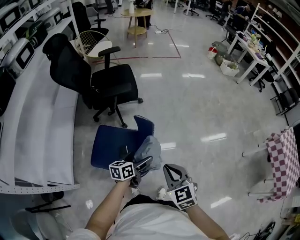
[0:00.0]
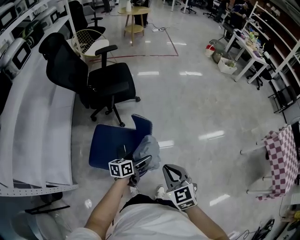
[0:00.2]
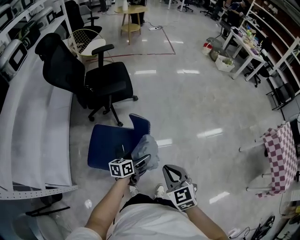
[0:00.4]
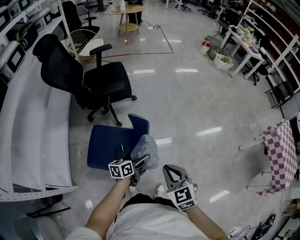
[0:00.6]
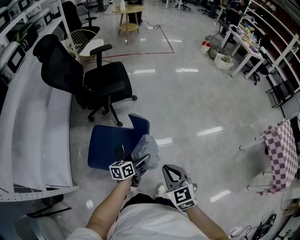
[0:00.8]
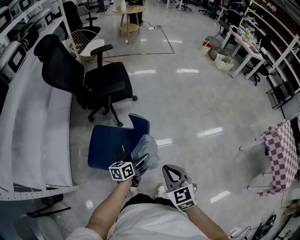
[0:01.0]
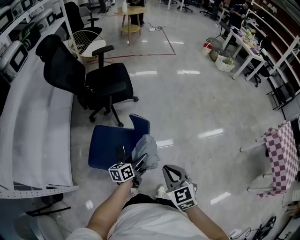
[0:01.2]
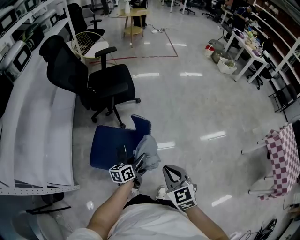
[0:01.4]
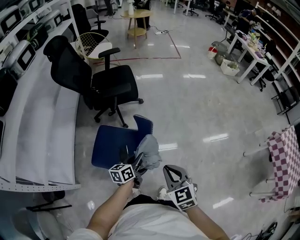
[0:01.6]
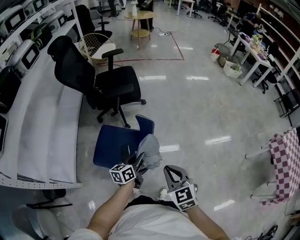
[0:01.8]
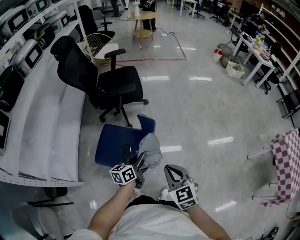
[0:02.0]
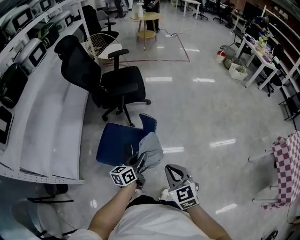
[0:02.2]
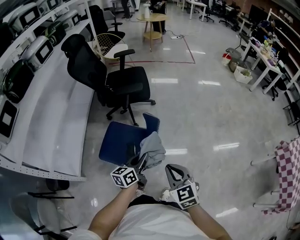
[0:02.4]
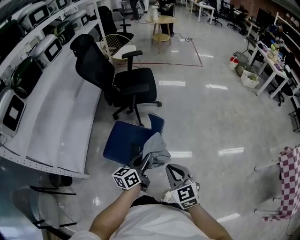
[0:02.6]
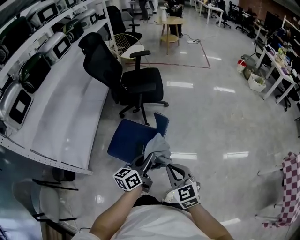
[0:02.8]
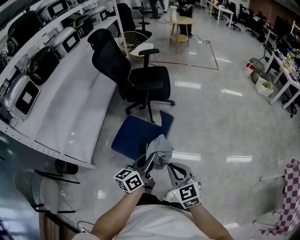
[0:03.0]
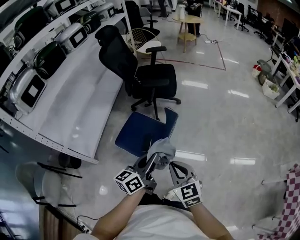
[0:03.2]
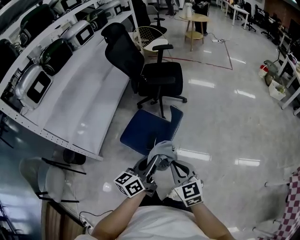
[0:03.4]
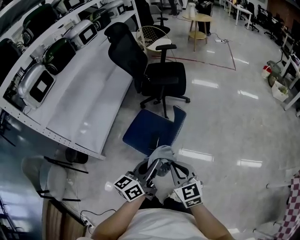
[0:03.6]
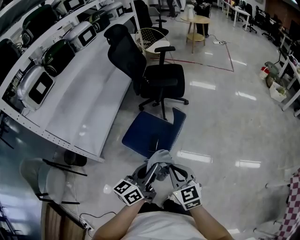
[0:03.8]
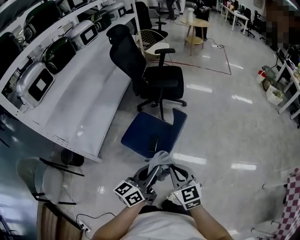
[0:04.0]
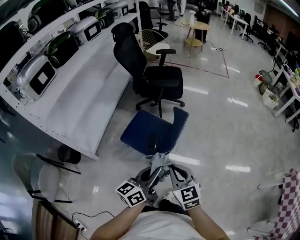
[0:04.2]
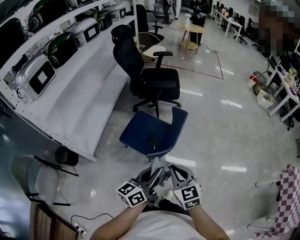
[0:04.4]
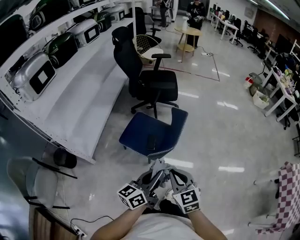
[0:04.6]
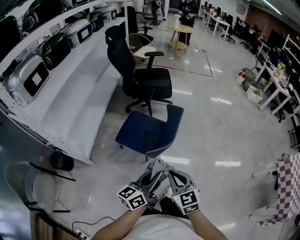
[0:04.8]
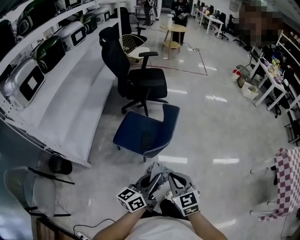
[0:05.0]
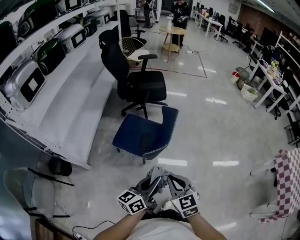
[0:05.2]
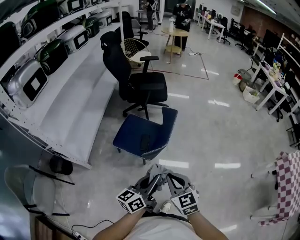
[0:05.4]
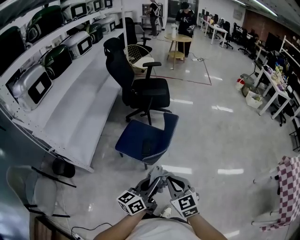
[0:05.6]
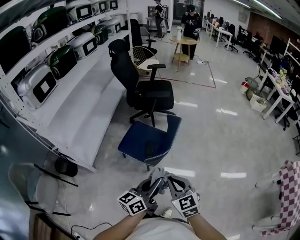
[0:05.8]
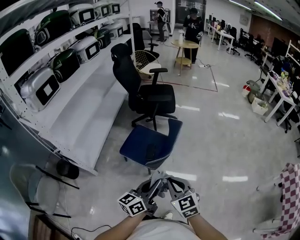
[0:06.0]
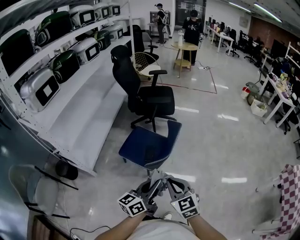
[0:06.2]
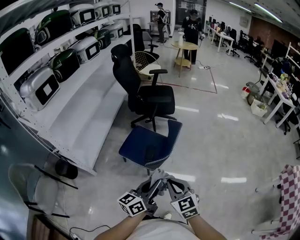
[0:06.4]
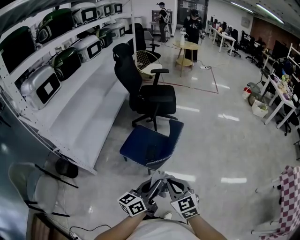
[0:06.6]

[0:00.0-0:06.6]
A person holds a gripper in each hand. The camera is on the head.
0.0 to 1.6 s: The left gripper closes.
1.6 to 3.2 s: The left gripper is displaced upward and backward by some 20 cm, and swivels approximately 20 degrees, while the right gripper moves backward, approximately 5 cm, and rotates about 20 degrees.
3.2 to 5.0 s: Both grippers travel together backward and to the left, some 20 cm.
5.0 to 6.6 s: The grippers move only a little.

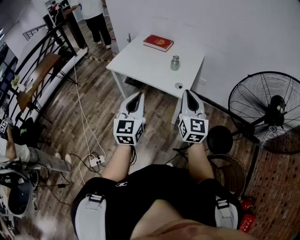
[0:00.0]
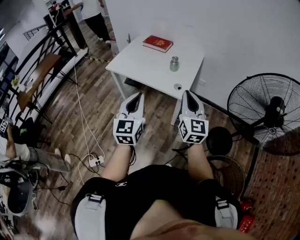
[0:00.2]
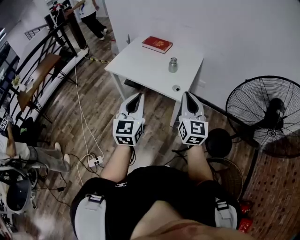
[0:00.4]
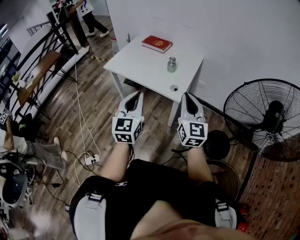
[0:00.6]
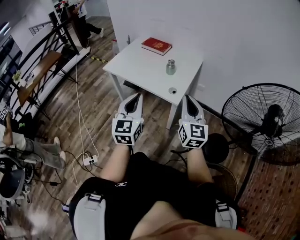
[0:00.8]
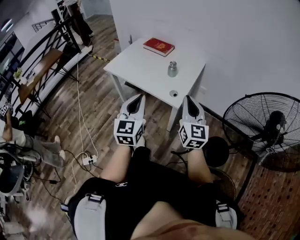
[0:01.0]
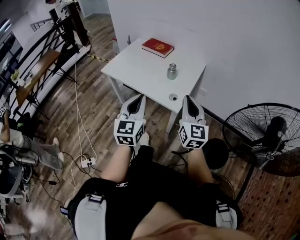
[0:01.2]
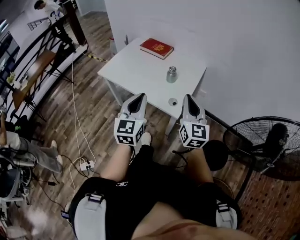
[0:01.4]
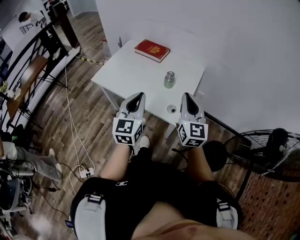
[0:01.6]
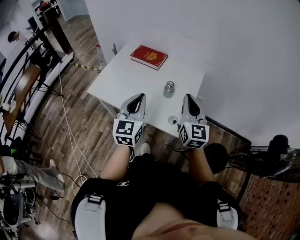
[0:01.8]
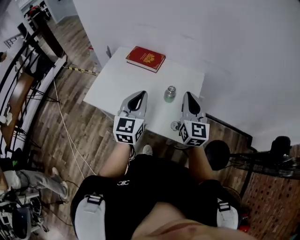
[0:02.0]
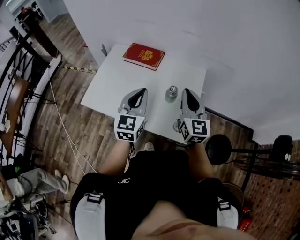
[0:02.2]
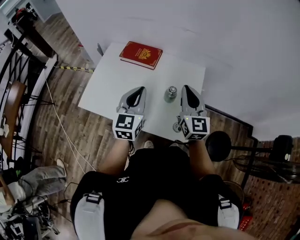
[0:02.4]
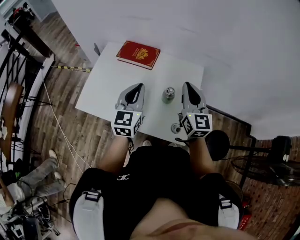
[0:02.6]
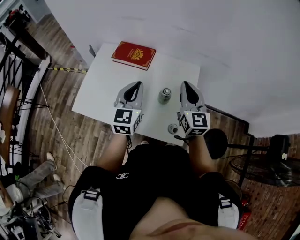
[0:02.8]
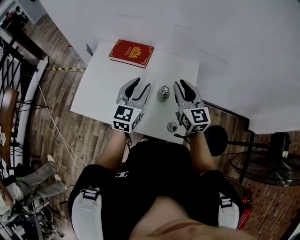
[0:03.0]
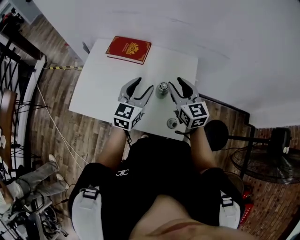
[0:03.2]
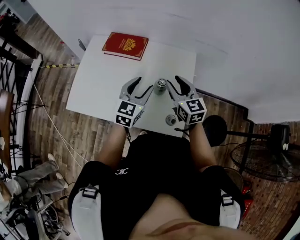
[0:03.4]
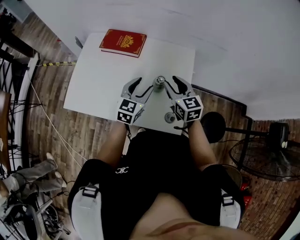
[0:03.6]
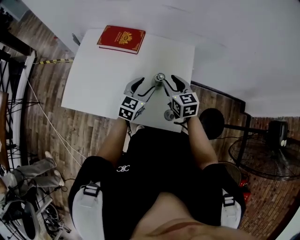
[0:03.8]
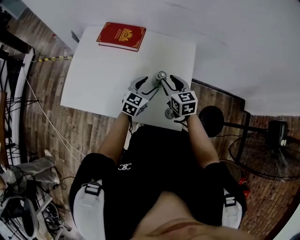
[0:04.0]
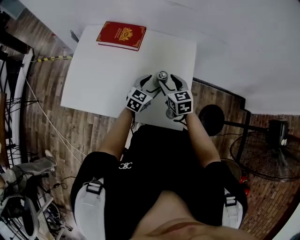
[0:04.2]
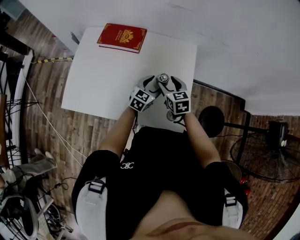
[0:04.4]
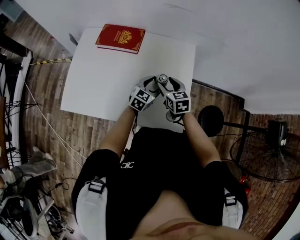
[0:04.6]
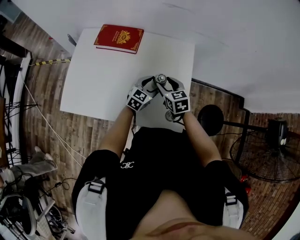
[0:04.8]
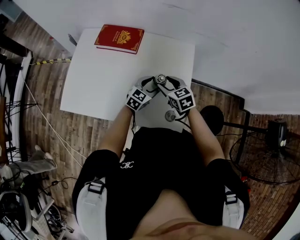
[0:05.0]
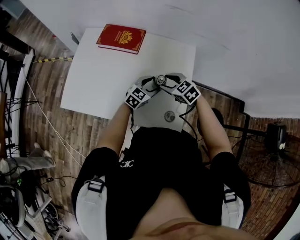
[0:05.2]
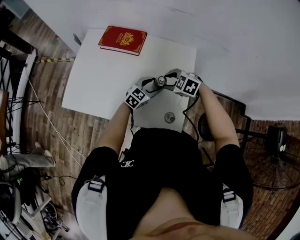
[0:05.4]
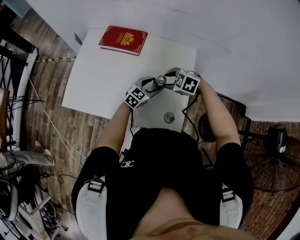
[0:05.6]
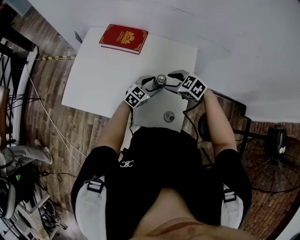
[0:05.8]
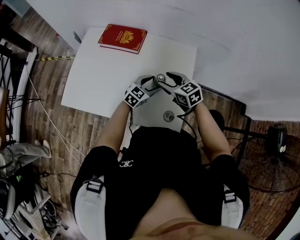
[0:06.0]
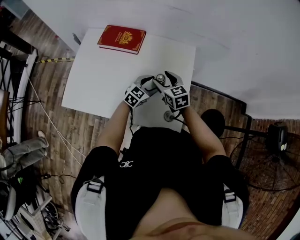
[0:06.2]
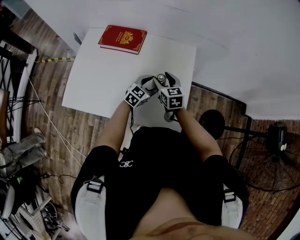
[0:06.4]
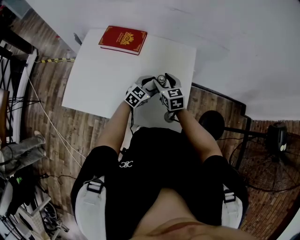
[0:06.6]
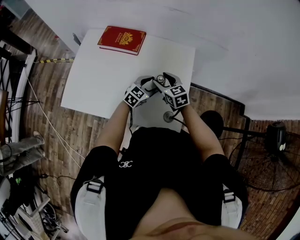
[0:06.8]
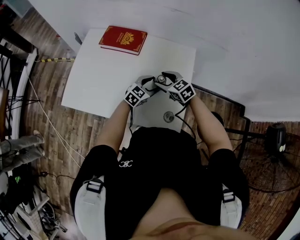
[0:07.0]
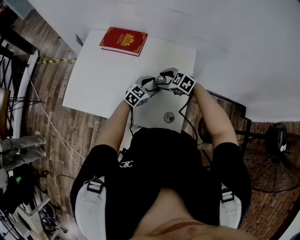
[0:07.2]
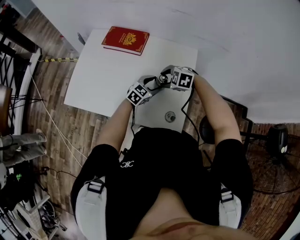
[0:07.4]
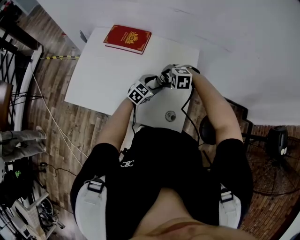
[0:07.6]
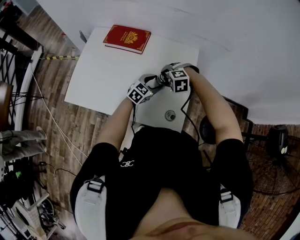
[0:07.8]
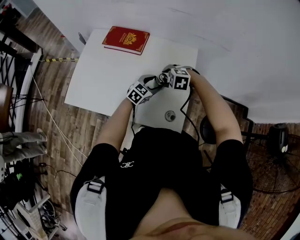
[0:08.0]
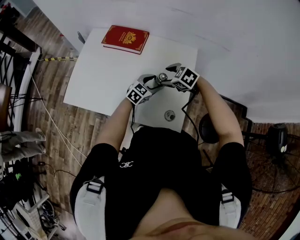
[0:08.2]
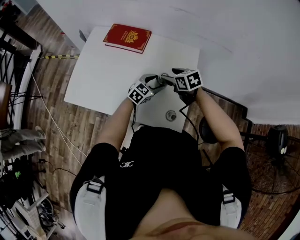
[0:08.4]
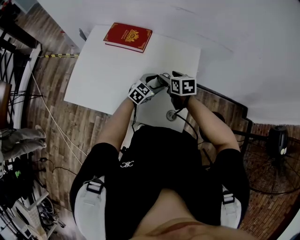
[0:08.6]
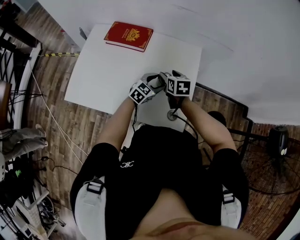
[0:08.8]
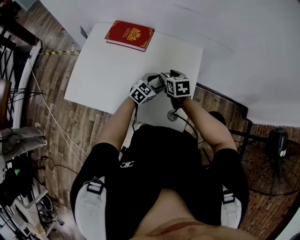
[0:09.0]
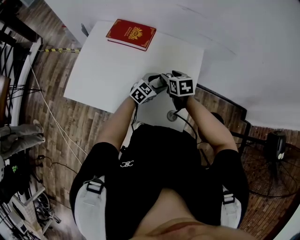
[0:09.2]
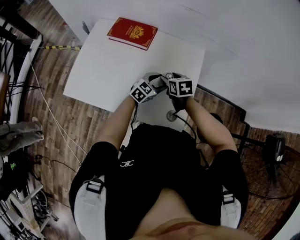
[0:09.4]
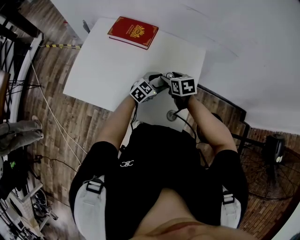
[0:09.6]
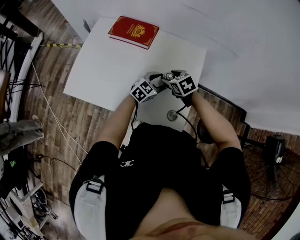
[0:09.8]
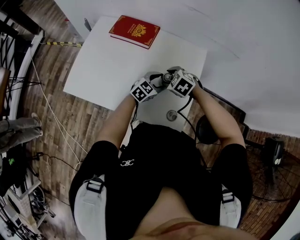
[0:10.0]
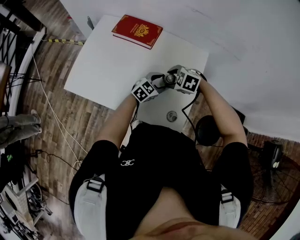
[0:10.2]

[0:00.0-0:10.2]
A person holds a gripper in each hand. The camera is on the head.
0.0 to 1.4 s: The right gripper shifts about 15 cm forward. The left gripper shifts about 15 cm forward and to the right.
1.4 to 3.0 s: Both grippers travel together forward, some 35 cm. The left gripper rotates roughly 30 degrees, and opens.
3.0 to 4.4 s: The right gripper is displaced downward by approximately 20 cm, tips its fingers downward by about 30 degrees, and opens its fingers. Meanwhile the left gripper goes about 25 cm downward and to the right, rotates approximately 30 degrees, and opens its fingers.
4.4 to 5.8 s: The right gripper turns by approximately 50 degrees.
7.2 to 8.8 s: The right gripper rotates around the line of its fingers by approximately 50 degrees, clockwise from behind.
8.8 to 10.2 s: The right gripper ends up roughly 5 cm from where it was, and rotates around the line of its fingers by some 70 degrees, counterclockwise from behind.

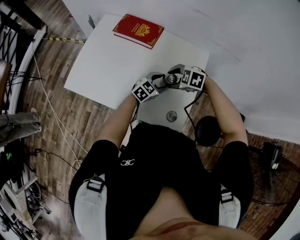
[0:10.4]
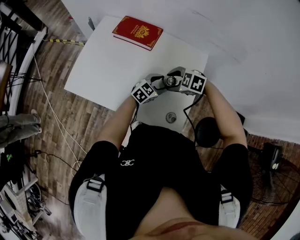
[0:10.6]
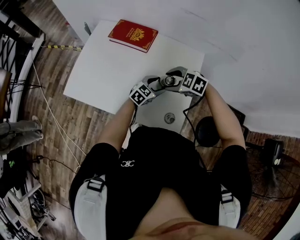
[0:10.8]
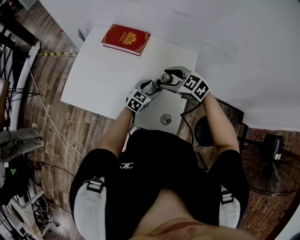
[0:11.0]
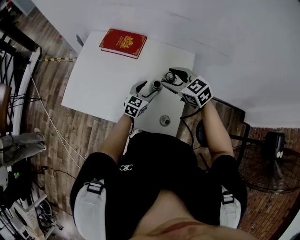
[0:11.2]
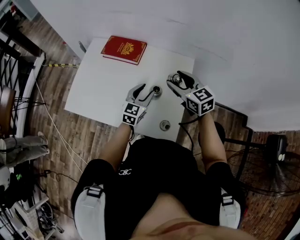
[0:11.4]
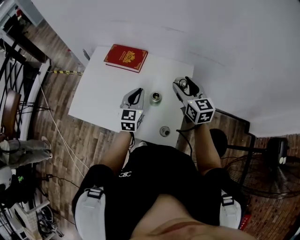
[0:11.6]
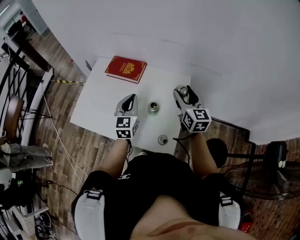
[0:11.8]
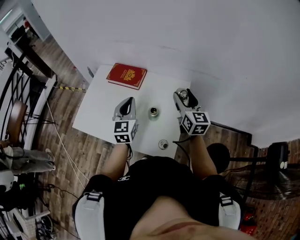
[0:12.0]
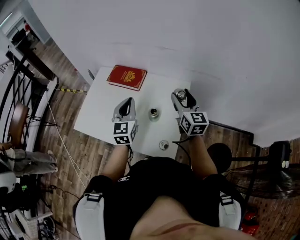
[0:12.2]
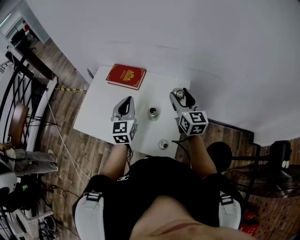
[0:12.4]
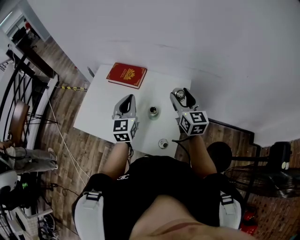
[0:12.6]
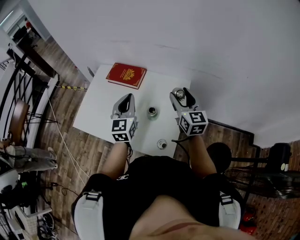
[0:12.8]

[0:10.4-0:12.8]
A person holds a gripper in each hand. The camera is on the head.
10.4 to 11.6 s: Both grippers travel together upward, approximately 15 cm. The right gripper tilts its fingers some 50 degrees upward, while the left gripper swivels some 40 degrees, and closes its fingers.
11.6 to 12.8 s: The left gripper shifts about 10 cm upward.

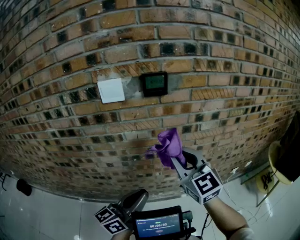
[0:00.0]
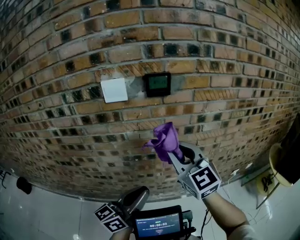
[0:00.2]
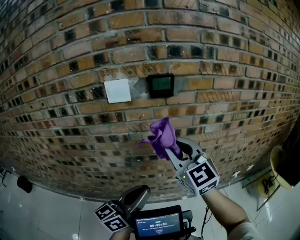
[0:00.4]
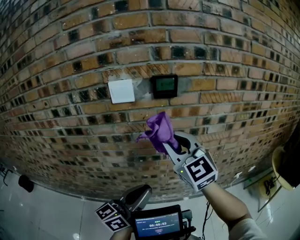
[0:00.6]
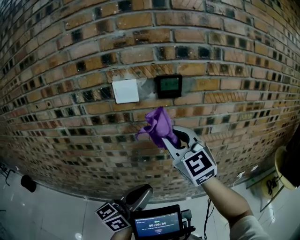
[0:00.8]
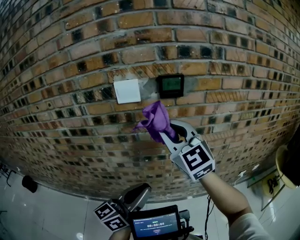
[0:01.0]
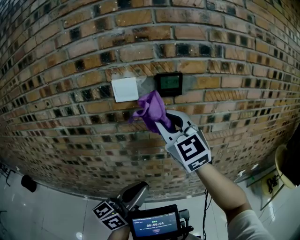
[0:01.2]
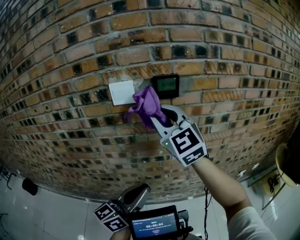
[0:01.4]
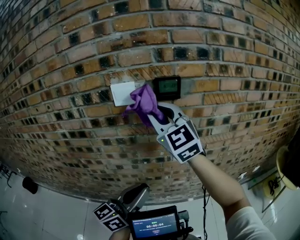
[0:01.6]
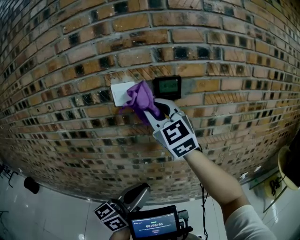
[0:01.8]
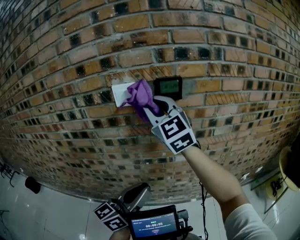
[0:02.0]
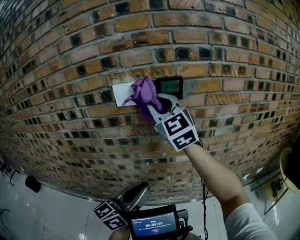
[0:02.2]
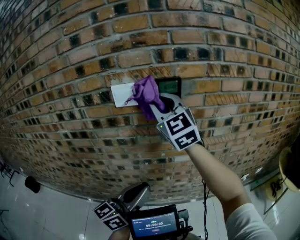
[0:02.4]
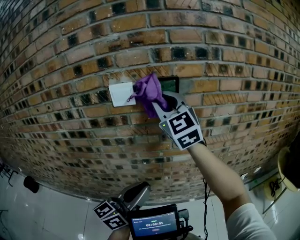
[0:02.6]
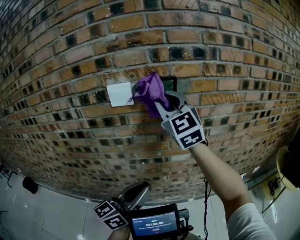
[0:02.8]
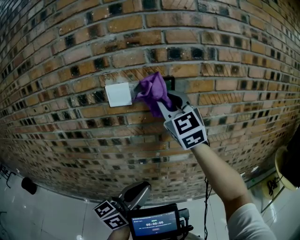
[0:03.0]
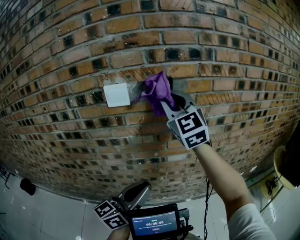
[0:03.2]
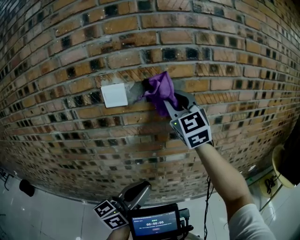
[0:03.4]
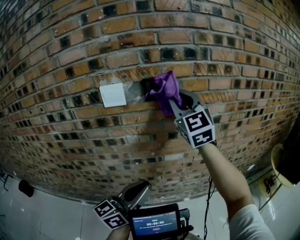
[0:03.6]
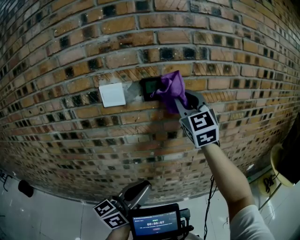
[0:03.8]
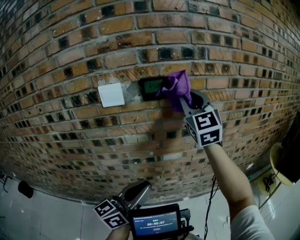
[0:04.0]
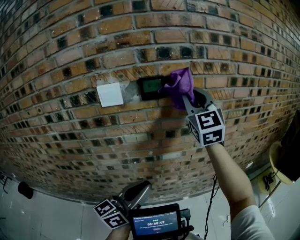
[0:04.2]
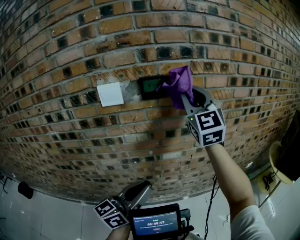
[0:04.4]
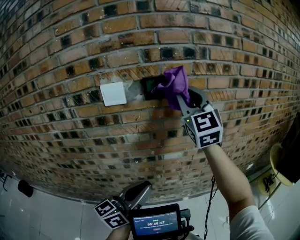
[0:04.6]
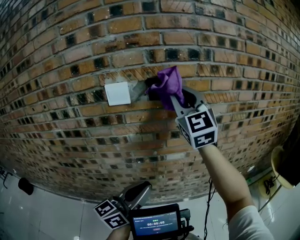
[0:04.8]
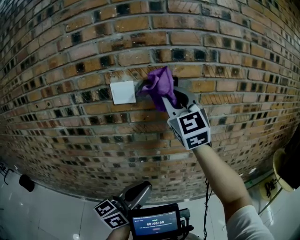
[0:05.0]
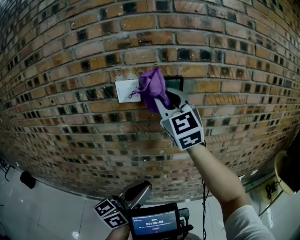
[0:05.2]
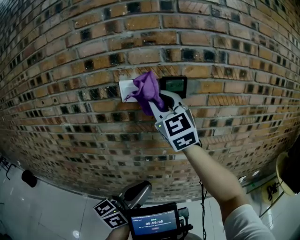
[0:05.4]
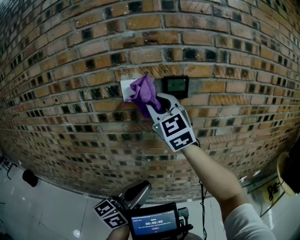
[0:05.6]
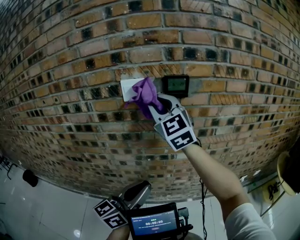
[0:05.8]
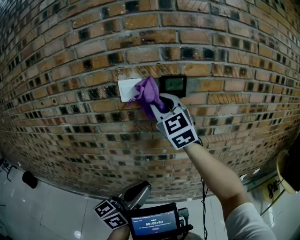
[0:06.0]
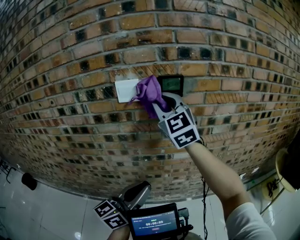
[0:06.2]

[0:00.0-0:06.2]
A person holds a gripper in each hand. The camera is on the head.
0.0 to 1.6 s: The right gripper shifts some 20 cm upward, to the left and forward. The left gripper moves some 5 cm.
1.6 to 3.2 s: The right gripper is displaced to the right by some 5 cm.
3.2 to 4.6 s: The right gripper is displaced to the right by roughly 5 cm.
4.6 to 6.2 s: The right gripper goes approximately 15 cm to the left.
